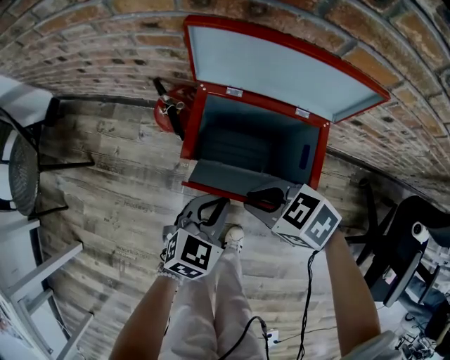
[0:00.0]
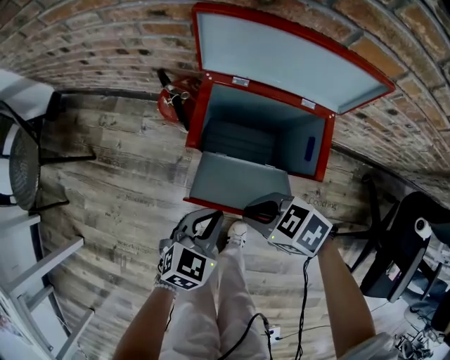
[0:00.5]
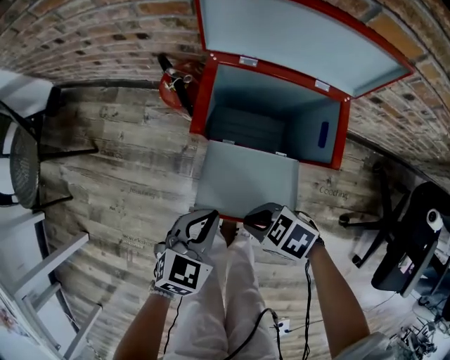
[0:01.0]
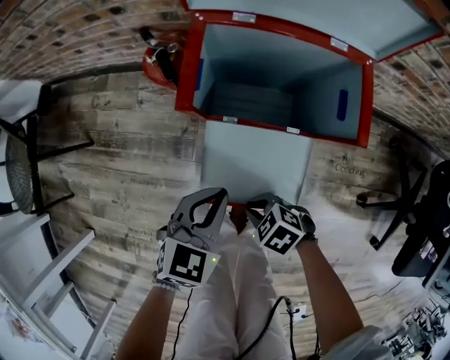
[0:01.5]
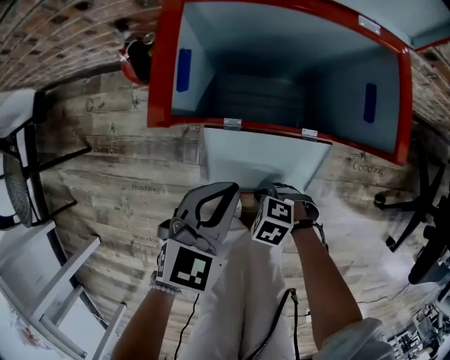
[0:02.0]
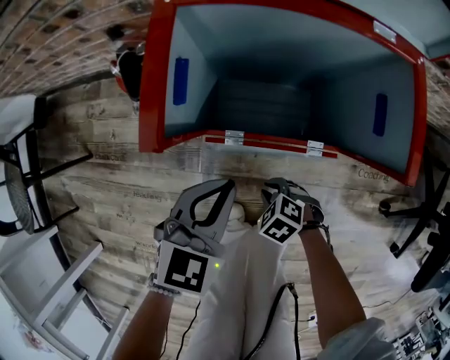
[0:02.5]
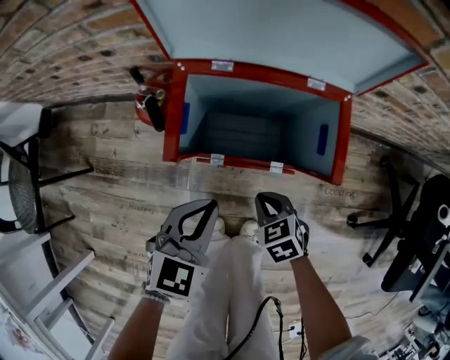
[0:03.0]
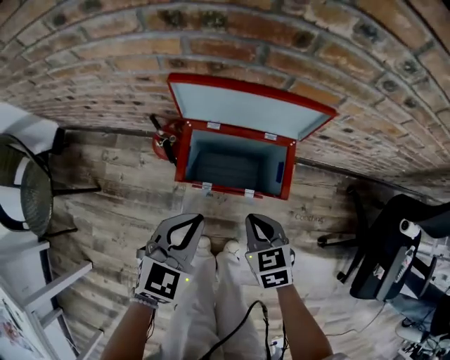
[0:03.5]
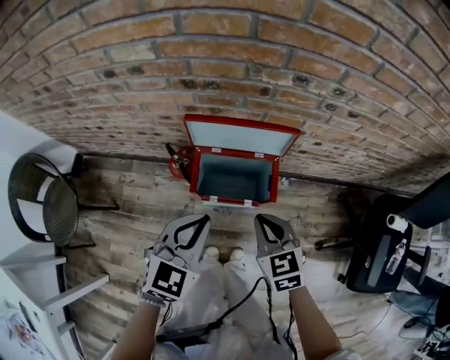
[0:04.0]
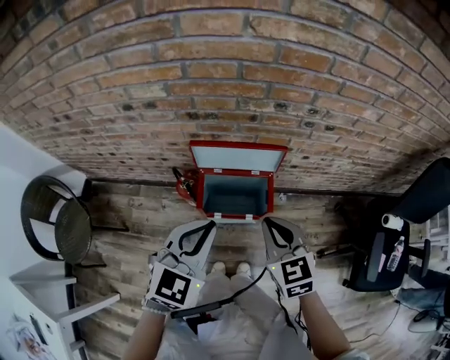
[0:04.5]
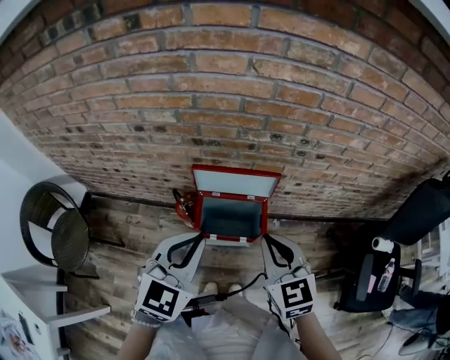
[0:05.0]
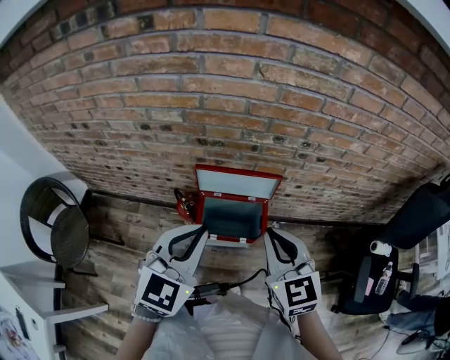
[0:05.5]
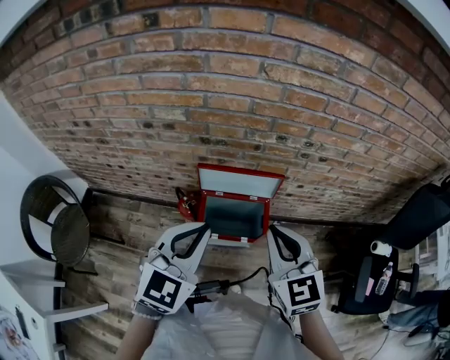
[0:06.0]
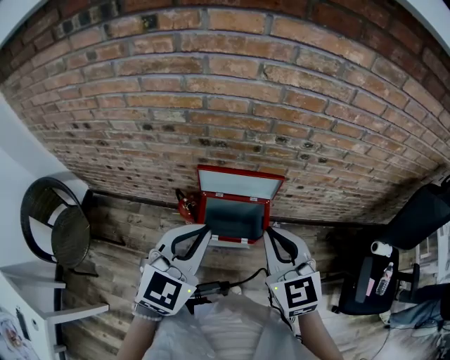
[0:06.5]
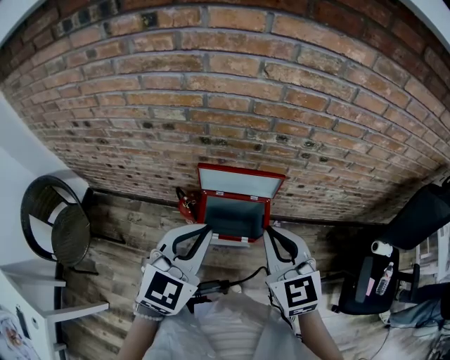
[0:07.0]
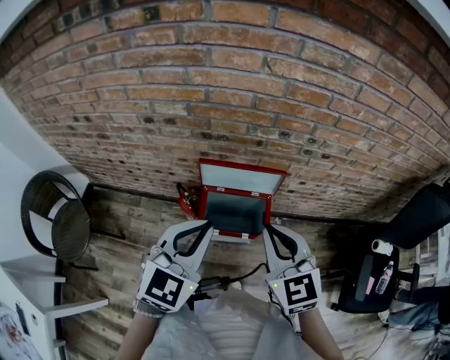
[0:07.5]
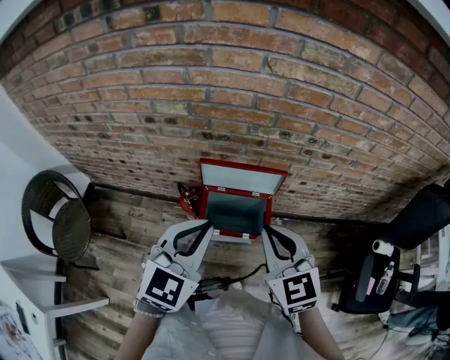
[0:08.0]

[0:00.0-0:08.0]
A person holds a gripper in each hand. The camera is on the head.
0:00.0 to 0:02.0: The left gripper shifts roughly 10 cm downward. Meanwhile the right gripper travels downward by some 35 cm, and changes its angle by roughly 30 degrees.
0:02.0 to 0:04.0: Both grippers move upward, roughly 50 cm. The right gripper points its fingers some 30 degrees further upward.
0:04.0 to 0:06.0: The two grippers go approximately 20 cm upward. The right gripper turns by approximately 20 degrees.
0:06.0 to 0:08.0: There are only small adjustments of the grippers.

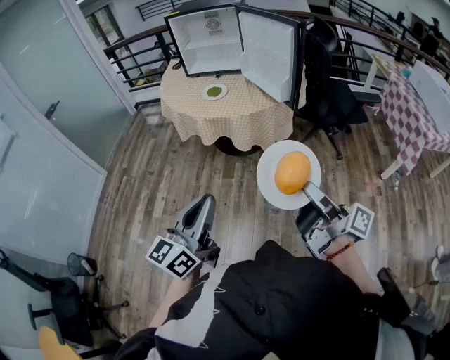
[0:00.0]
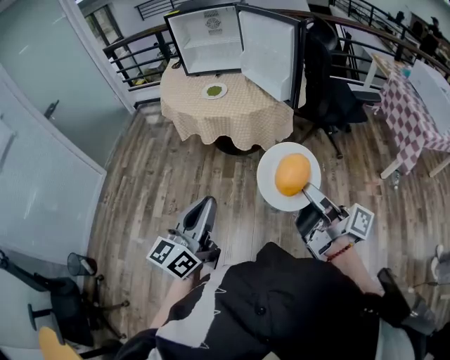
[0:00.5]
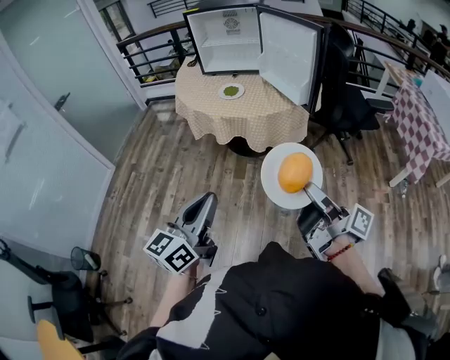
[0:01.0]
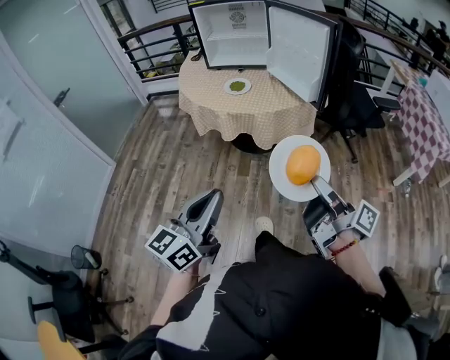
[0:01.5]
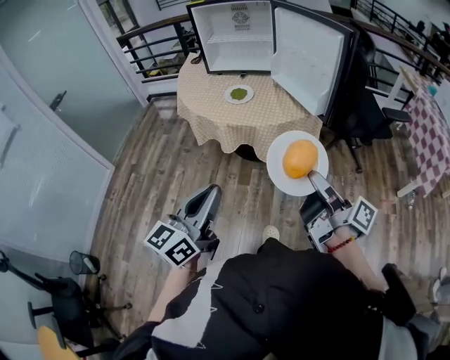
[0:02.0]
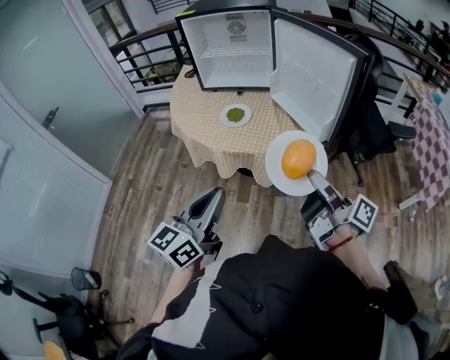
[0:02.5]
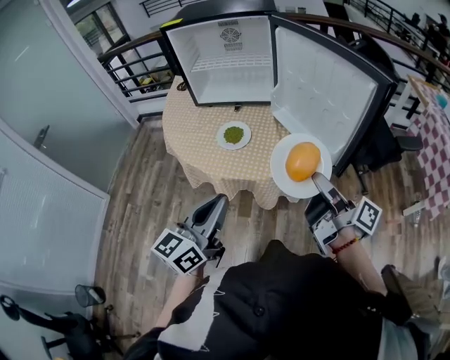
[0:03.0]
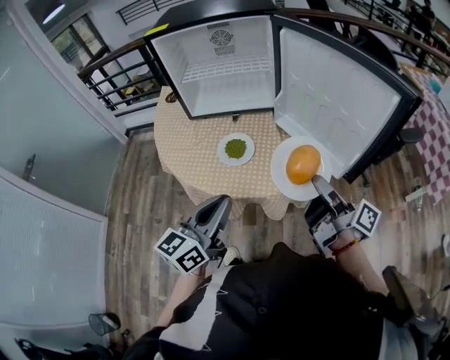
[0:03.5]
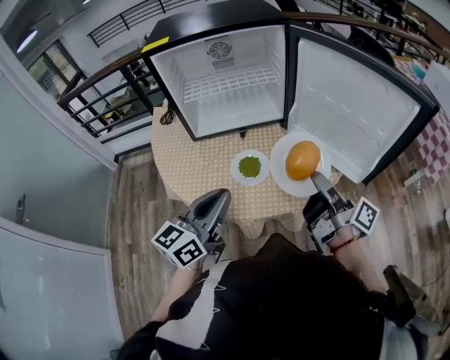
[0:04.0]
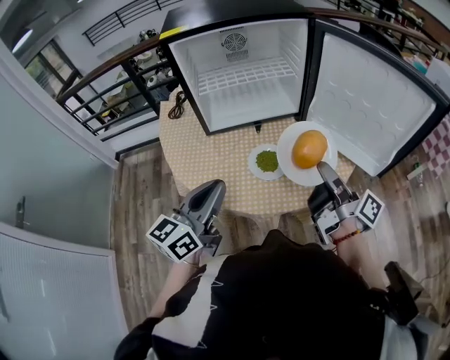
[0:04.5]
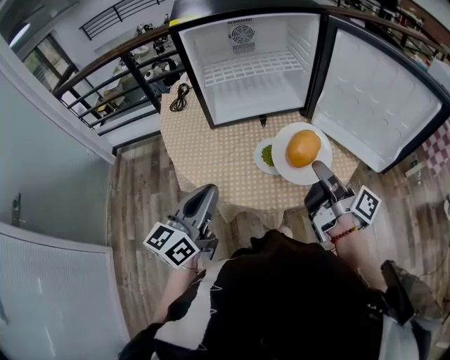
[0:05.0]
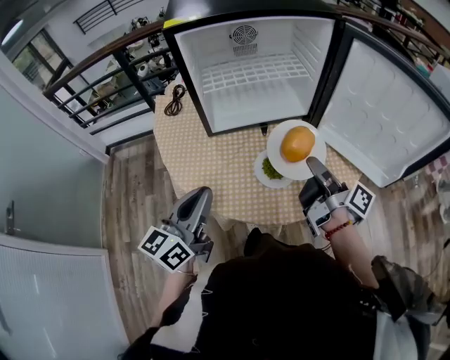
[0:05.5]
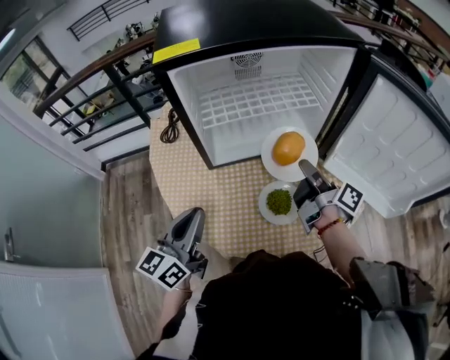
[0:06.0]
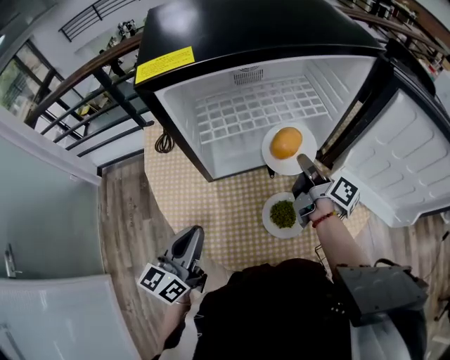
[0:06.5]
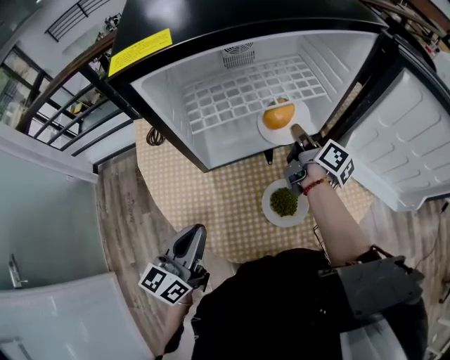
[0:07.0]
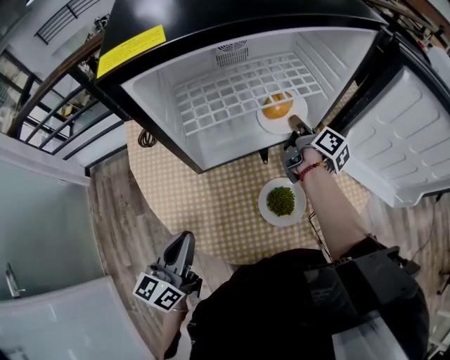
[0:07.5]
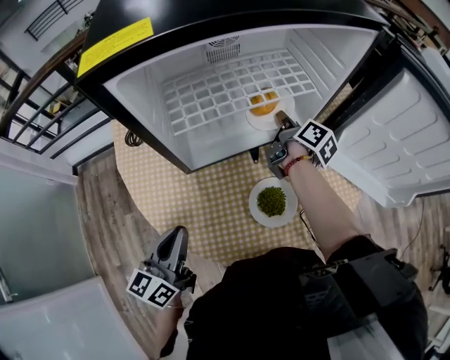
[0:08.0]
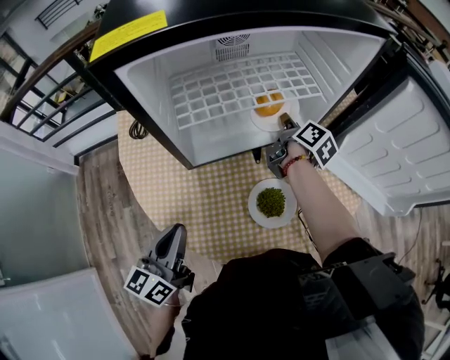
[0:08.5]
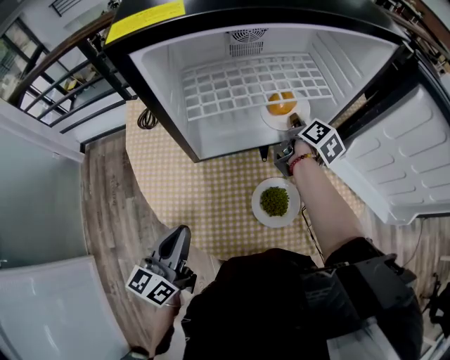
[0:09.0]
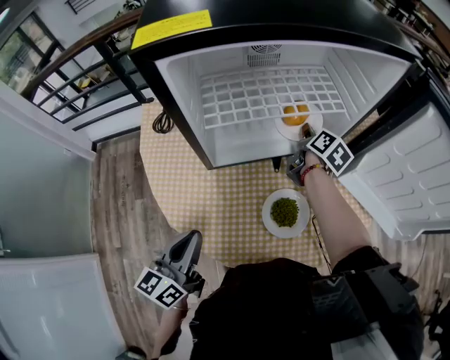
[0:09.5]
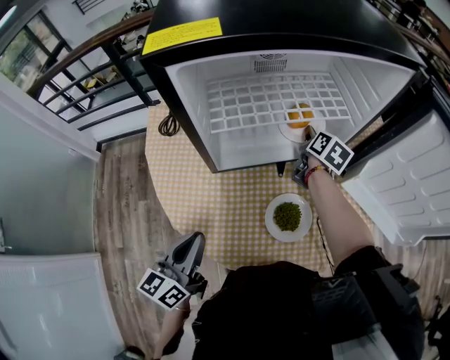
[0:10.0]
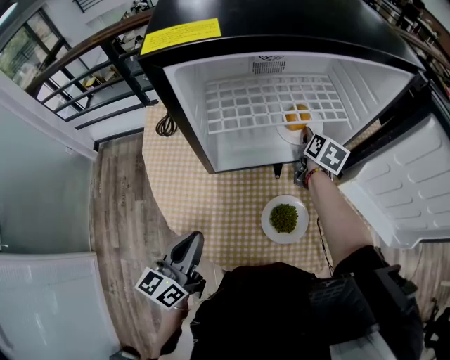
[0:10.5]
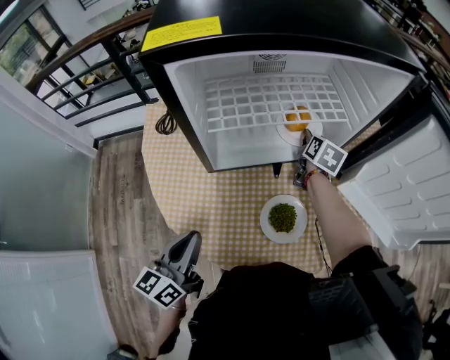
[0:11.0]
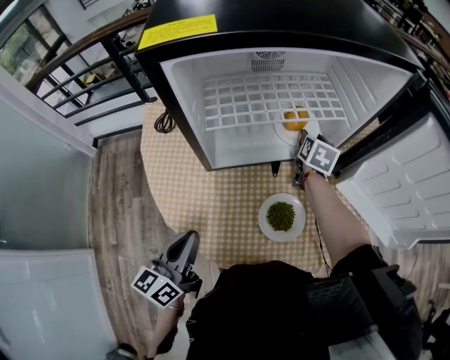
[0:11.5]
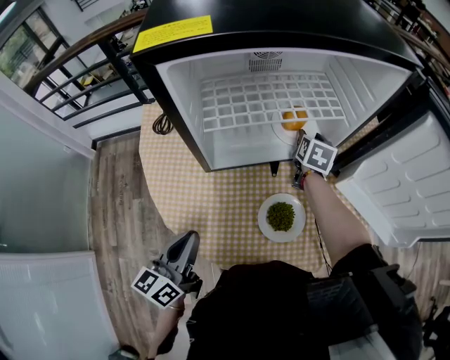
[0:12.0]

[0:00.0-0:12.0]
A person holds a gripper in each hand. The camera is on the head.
0:00.0 to 0:02.0: The grippers both shift forward and to the left by approximately 15 cm.
0:02.0 to 0:04.0: The two grippers go some 40 cm forward. The left gripper swivels approximately 20 degrees.
0:04.0 to 0:06.0: The right gripper heads forward and to the left, covering roughly 25 cm, while the left gripper shifts some 25 cm to the left and forward.
0:06.0 to 0:08.0: The right gripper goes approximately 20 cm forward and downward, and changes its angle by approximately 30 degrees; the left gripper is displaced downward by some 5 cm.
0:08.0 to 0:10.0: The right gripper swivels about 30 degrees.
0:10.0 to 0:12.0: The right gripper rotates roughly 20 degrees, and opens up.

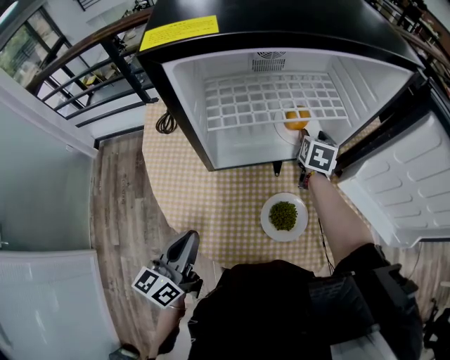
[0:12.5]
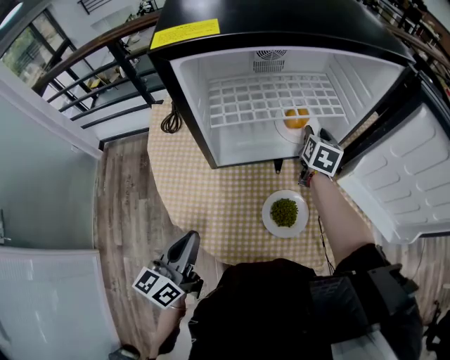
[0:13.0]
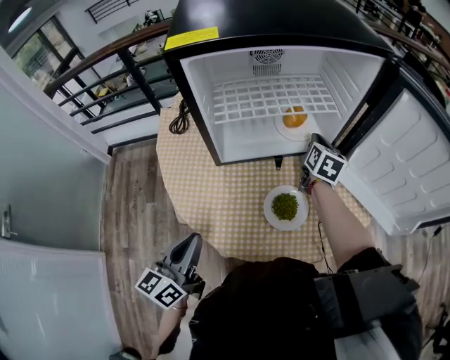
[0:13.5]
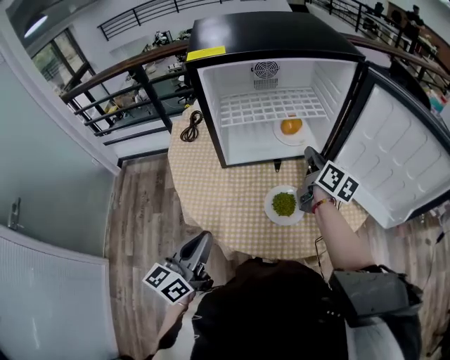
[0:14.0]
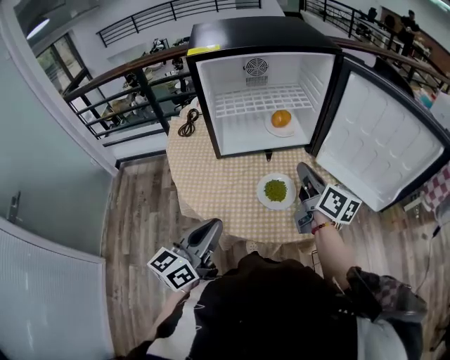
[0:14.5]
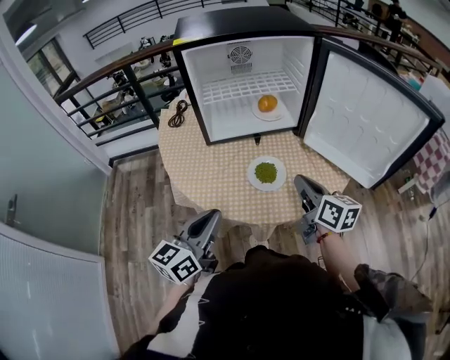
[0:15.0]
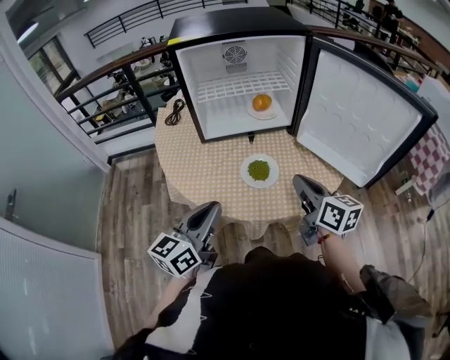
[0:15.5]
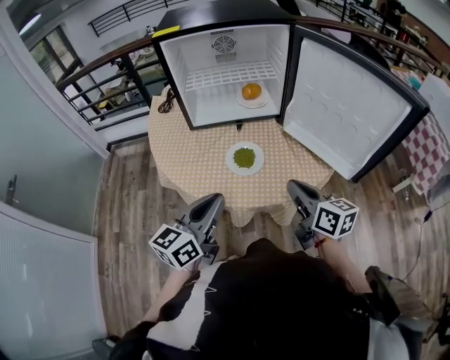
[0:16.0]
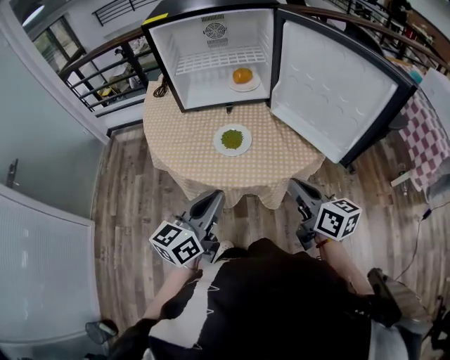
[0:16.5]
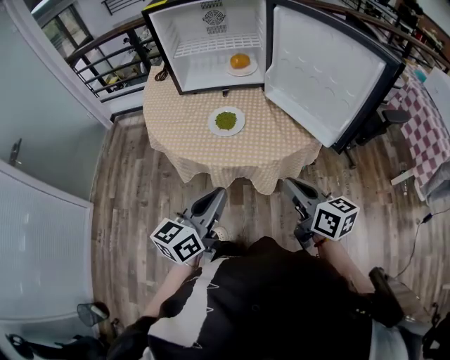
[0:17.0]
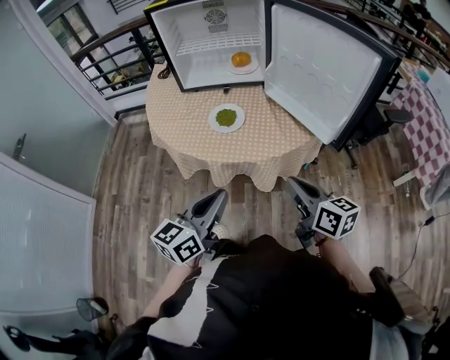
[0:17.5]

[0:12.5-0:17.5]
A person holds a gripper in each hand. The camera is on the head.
0:12.5 to 0:15.0: The right gripper goes about 35 cm backward, swivels some 50 degrees, and closes; the left gripper goes about 20 cm backward, to the right and upward.
0:15.0 to 0:17.5: The left gripper heads to the right and backward, covering about 30 cm, while the right gripper travels backward and to the right by some 25 cm.

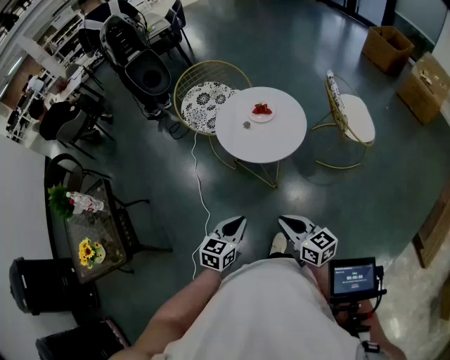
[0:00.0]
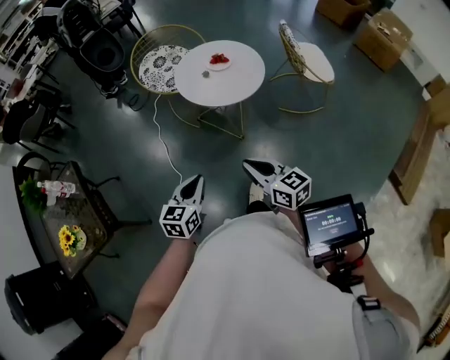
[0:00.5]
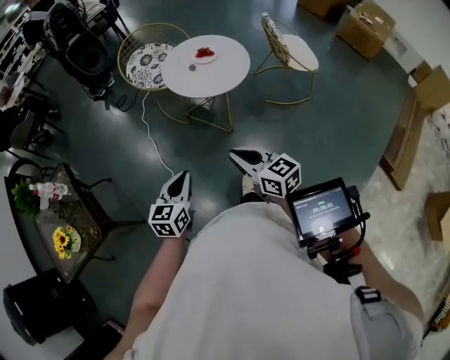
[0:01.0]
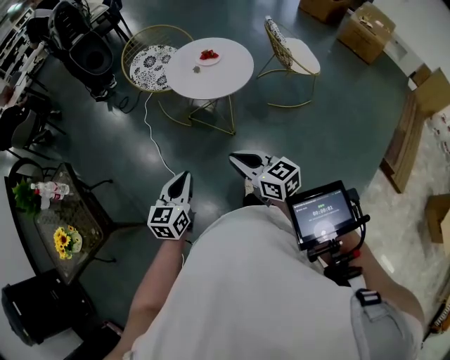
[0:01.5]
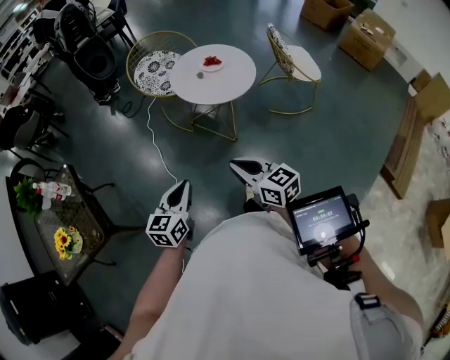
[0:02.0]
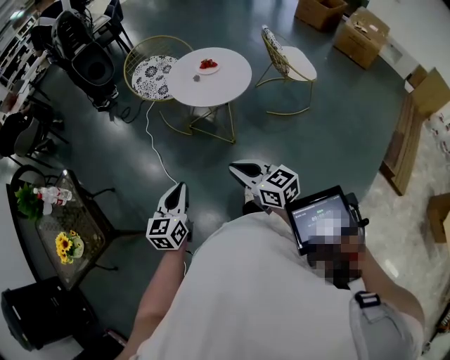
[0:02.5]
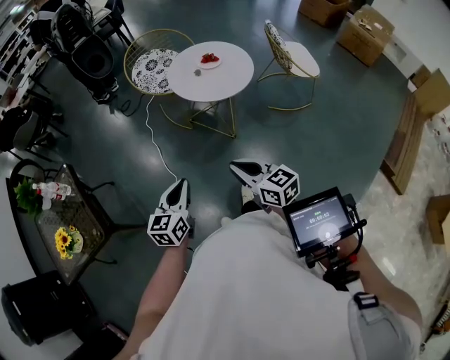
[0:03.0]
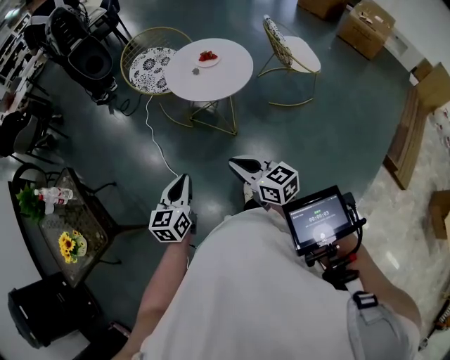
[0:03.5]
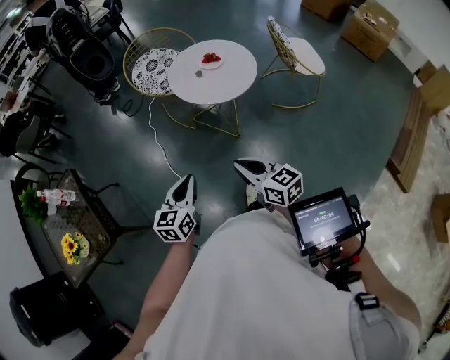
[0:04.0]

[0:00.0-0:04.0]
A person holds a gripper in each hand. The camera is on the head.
0:00.0 to 0:02.0: The grippers both shift to the left and backward by approximately 15 cm.
0:02.0 to 0:04.0: There are only small adjustments of the grippers.
